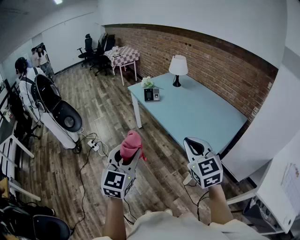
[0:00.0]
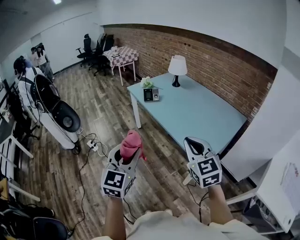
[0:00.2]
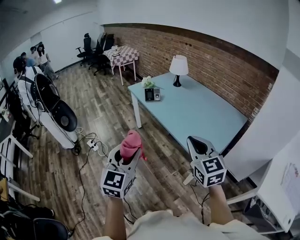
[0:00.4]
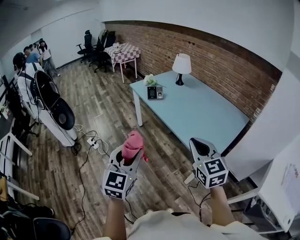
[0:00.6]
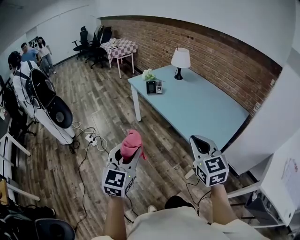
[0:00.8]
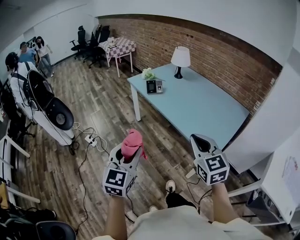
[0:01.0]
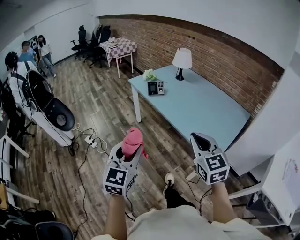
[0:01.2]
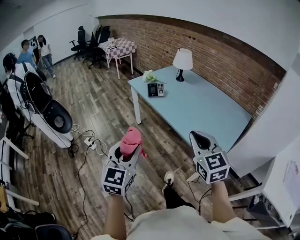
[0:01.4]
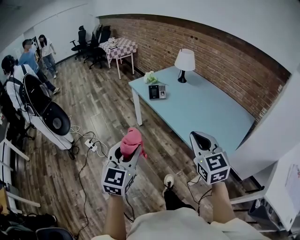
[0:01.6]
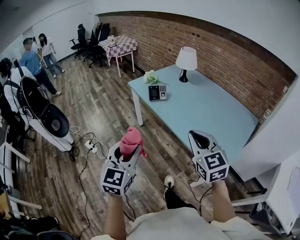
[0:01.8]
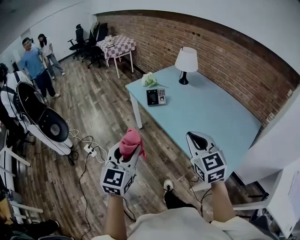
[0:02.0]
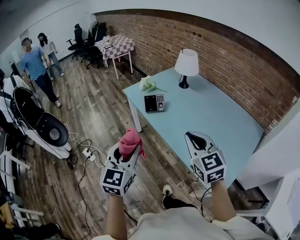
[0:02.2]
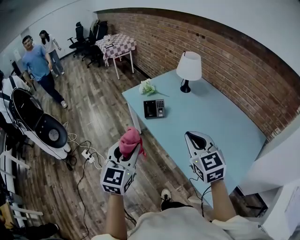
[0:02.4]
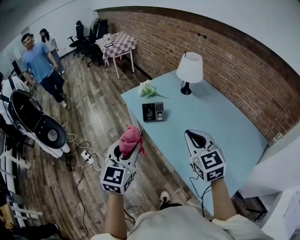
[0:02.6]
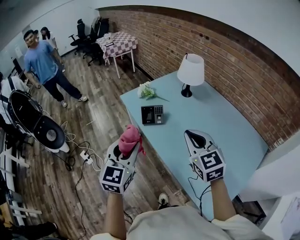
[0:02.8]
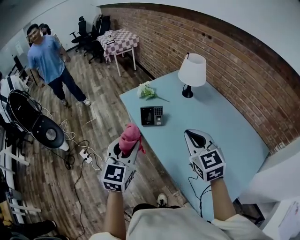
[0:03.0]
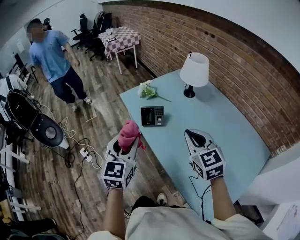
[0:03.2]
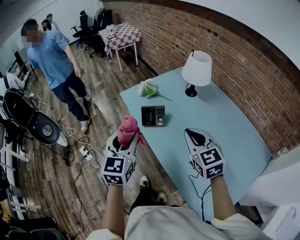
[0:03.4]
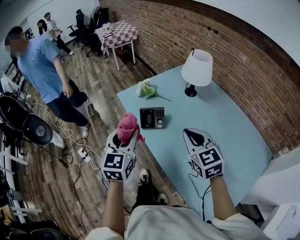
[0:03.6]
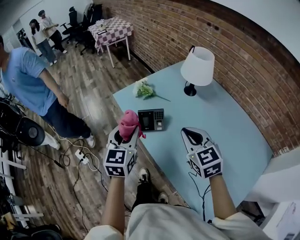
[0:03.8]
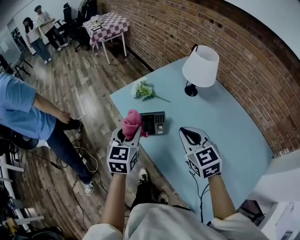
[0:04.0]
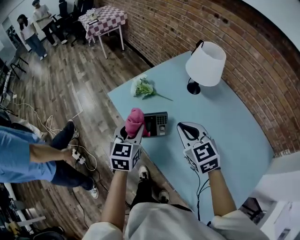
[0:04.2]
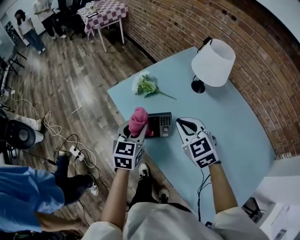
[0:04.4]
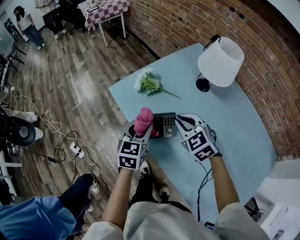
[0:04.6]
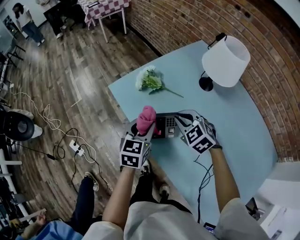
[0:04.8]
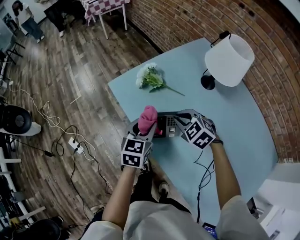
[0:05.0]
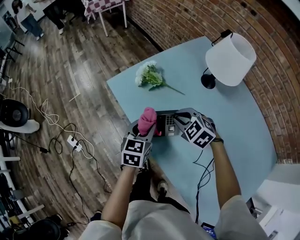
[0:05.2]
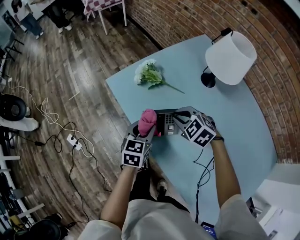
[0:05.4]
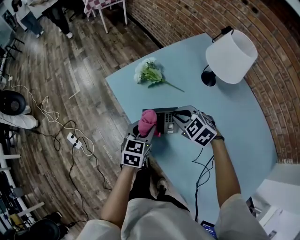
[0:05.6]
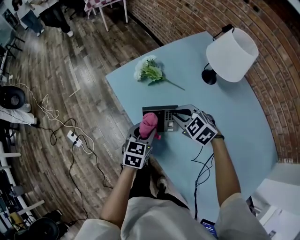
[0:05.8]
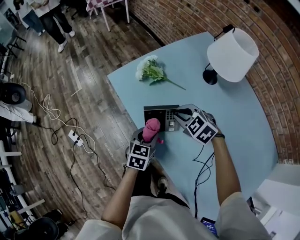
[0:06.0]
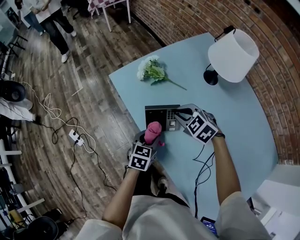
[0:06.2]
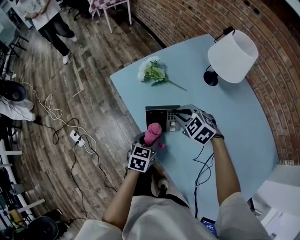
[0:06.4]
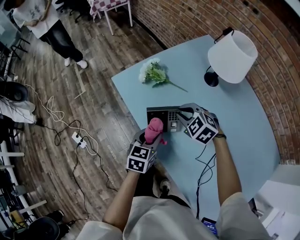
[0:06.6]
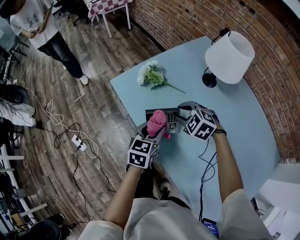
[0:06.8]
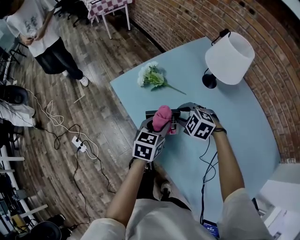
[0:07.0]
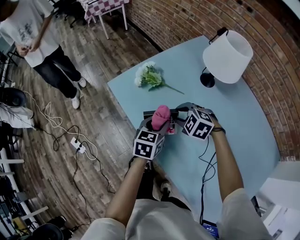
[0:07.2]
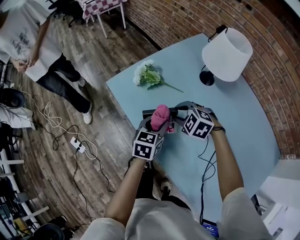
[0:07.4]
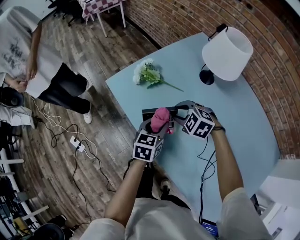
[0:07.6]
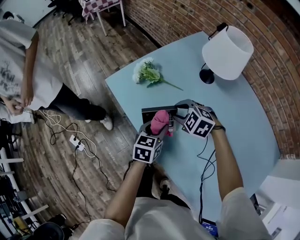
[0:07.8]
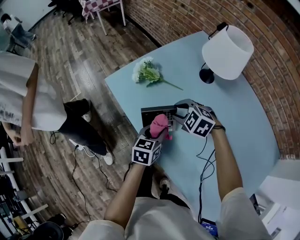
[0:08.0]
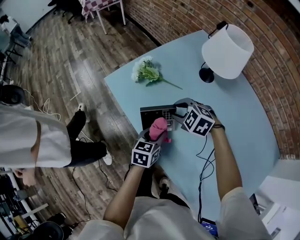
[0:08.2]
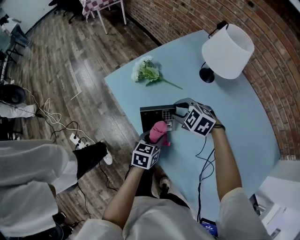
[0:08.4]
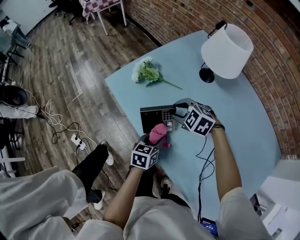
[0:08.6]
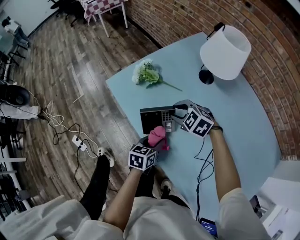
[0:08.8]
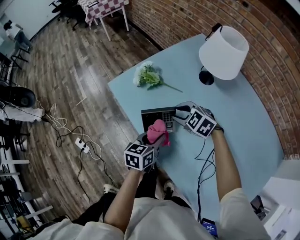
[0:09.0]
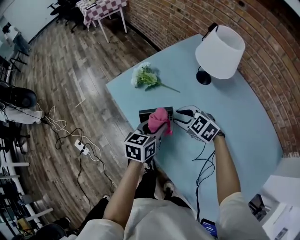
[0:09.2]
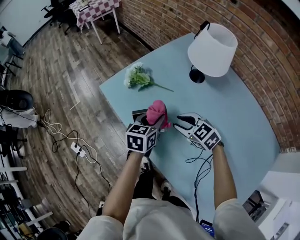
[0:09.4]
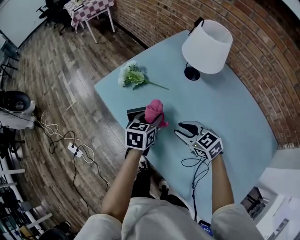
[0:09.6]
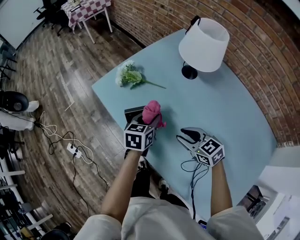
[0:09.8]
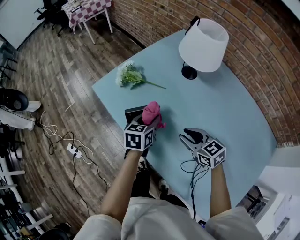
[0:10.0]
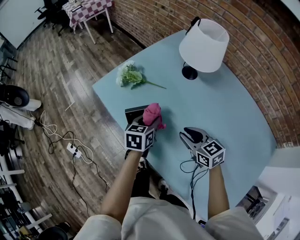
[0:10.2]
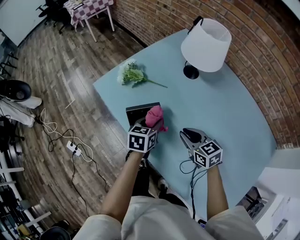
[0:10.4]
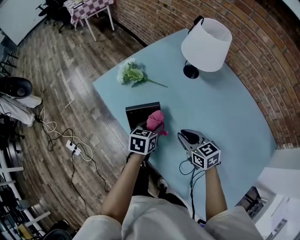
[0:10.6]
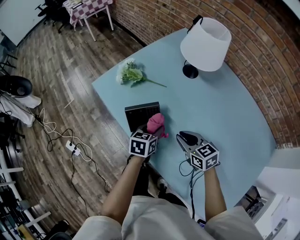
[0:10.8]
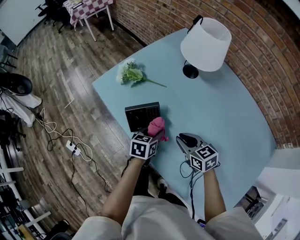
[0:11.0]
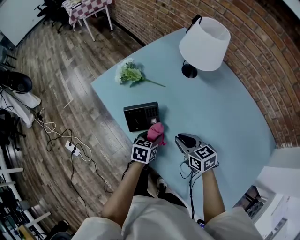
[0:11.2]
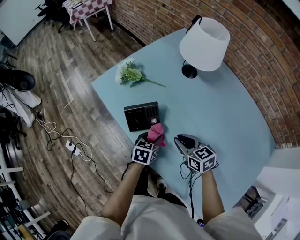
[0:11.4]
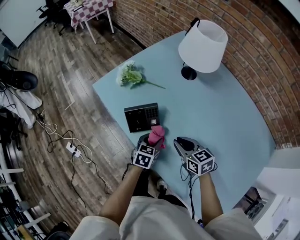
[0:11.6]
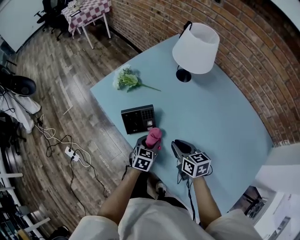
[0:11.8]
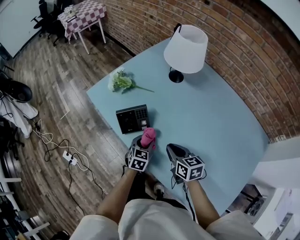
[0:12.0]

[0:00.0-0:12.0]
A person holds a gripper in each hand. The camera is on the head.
0.0 to 1.6 s: The grippers both shift forward and to the left by some 15 cm.
1.6 to 3.0 s: Both grippers travel together forward, about 35 cm.
3.0 to 4.4 s: The grippers both shift forward and downward by some 30 cm.
4.4 to 6.0 s: Both grippers travel together downward, some 15 cm. The right gripper turns by roughly 30 degrees.
6.0 to 7.6 s: The left gripper ends up some 10 cm from where it was. The right gripper opens its fingers.
9.0 to 10.4 s: The right gripper is displaced backward and to the right by roughly 15 cm, and rotates approximately 40 degrees. Meanwhile the left gripper heads to the right, covering some 5 cm.
10.4 to 12.0 s: The left gripper goes some 10 cm backward and downward, and rotates about 20 degrees. Meanwhile the right gripper travels backward by approximately 5 cm.

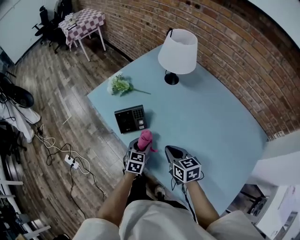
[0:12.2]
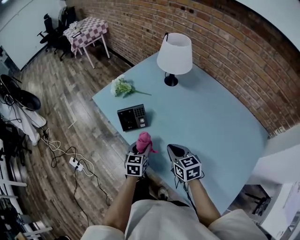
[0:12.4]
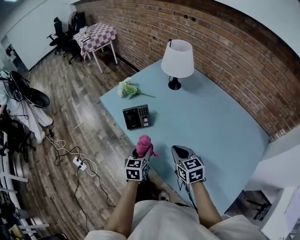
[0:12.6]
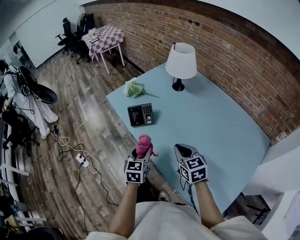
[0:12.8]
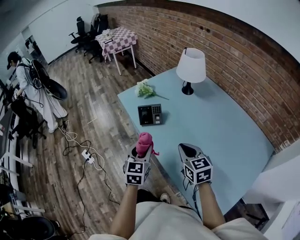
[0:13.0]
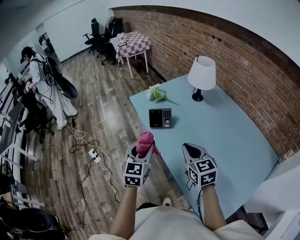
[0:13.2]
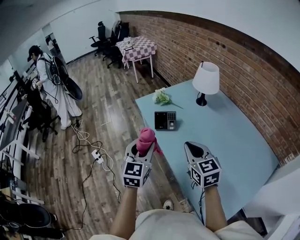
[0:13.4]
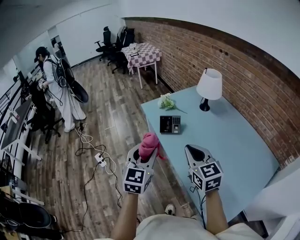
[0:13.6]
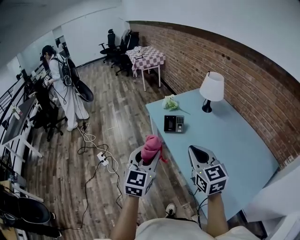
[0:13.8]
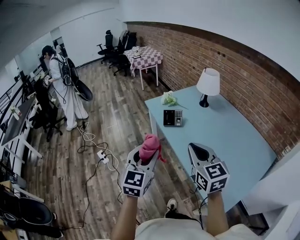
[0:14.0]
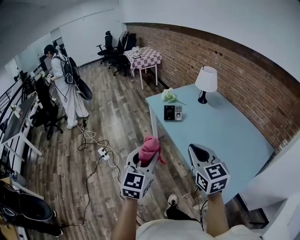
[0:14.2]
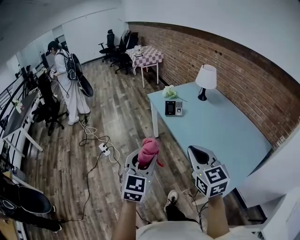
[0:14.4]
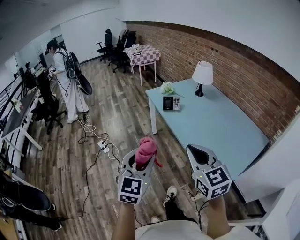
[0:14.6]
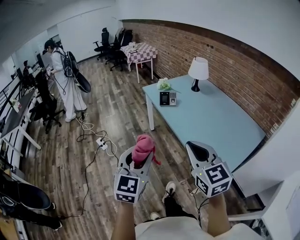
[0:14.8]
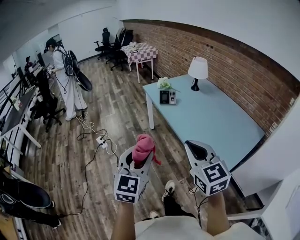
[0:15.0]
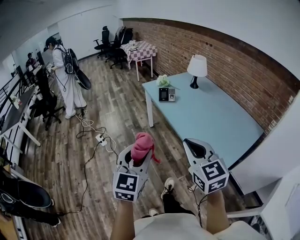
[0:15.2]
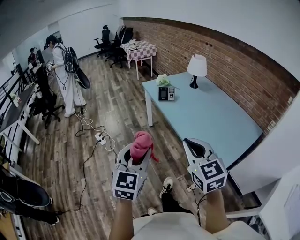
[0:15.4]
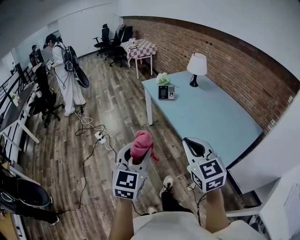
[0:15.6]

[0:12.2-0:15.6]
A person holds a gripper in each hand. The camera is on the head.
12.2 to 13.8 s: Both grippers move upward and backward, approximately 40 cm. The right gripper turns by roughly 30 degrees; the left gripper turns by roughly 40 degrees.
13.8 to 15.6 s: Both grippers travel together backward, roughly 35 cm.

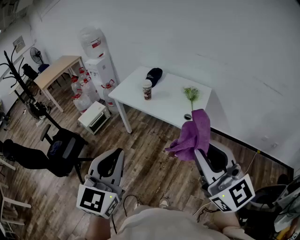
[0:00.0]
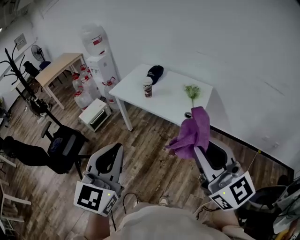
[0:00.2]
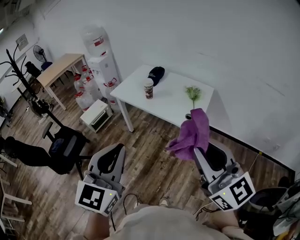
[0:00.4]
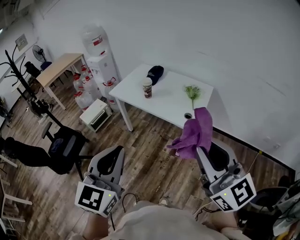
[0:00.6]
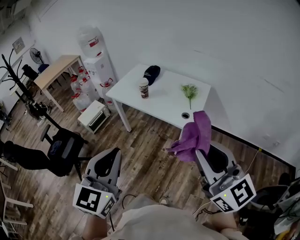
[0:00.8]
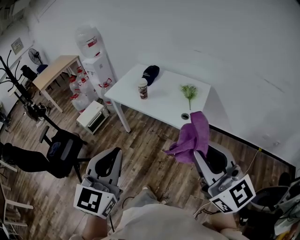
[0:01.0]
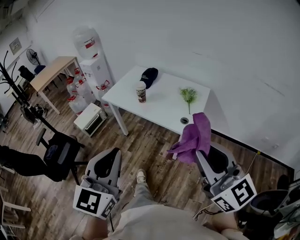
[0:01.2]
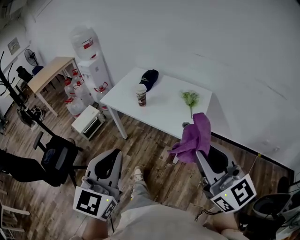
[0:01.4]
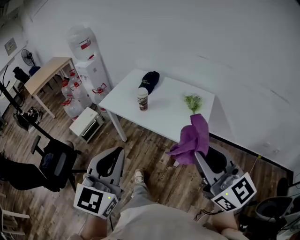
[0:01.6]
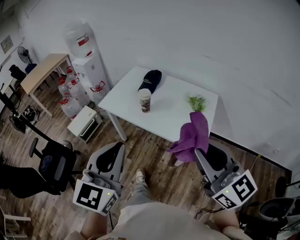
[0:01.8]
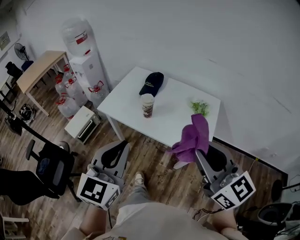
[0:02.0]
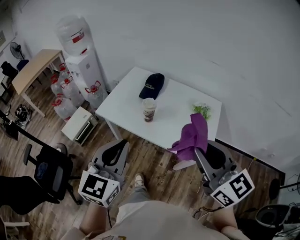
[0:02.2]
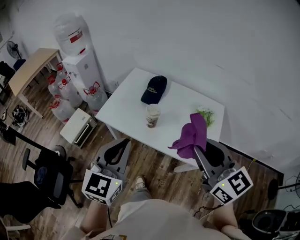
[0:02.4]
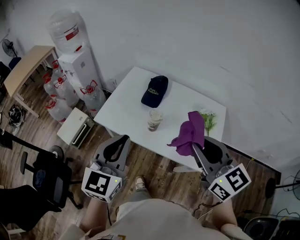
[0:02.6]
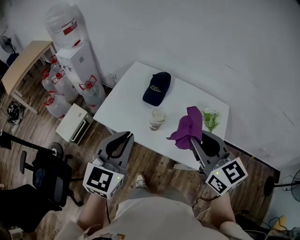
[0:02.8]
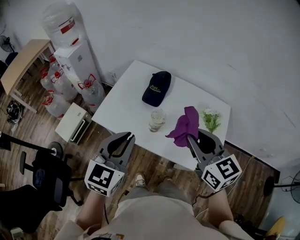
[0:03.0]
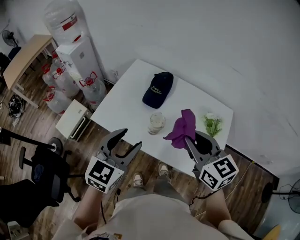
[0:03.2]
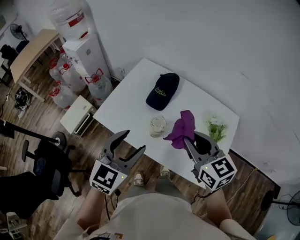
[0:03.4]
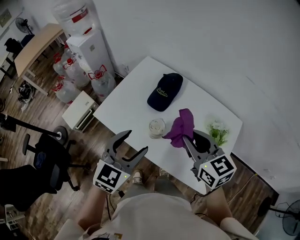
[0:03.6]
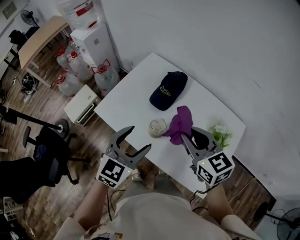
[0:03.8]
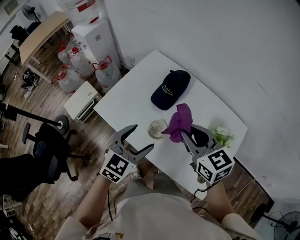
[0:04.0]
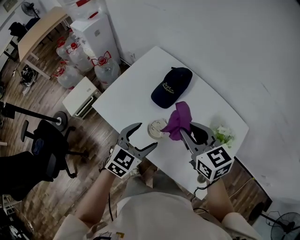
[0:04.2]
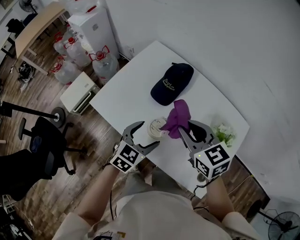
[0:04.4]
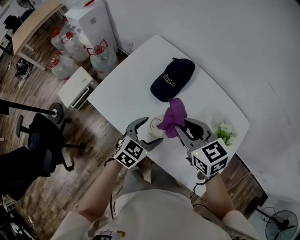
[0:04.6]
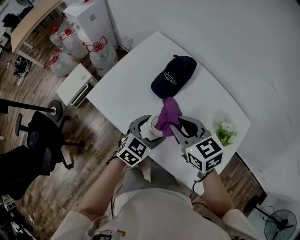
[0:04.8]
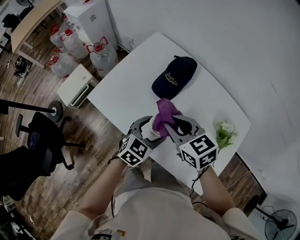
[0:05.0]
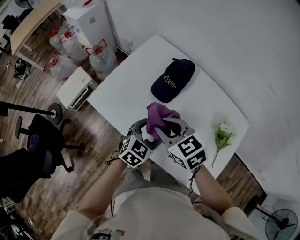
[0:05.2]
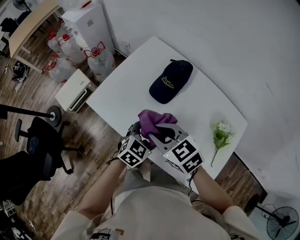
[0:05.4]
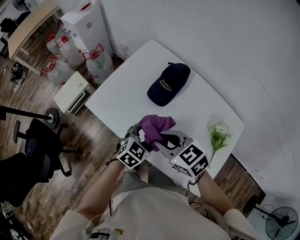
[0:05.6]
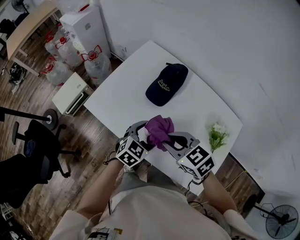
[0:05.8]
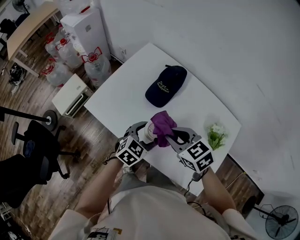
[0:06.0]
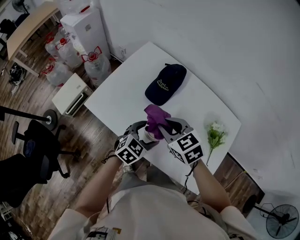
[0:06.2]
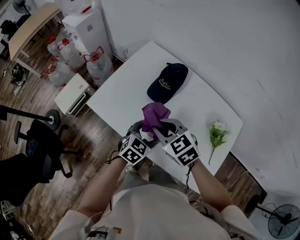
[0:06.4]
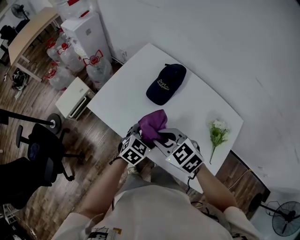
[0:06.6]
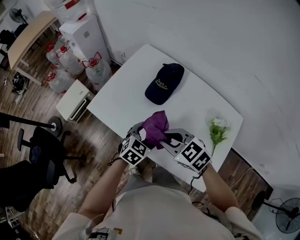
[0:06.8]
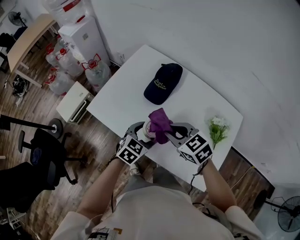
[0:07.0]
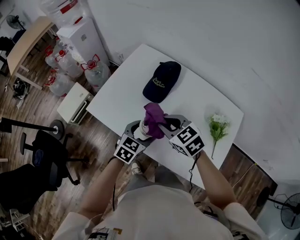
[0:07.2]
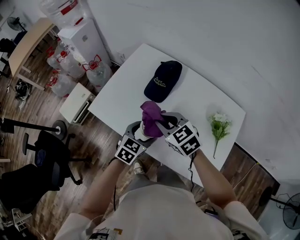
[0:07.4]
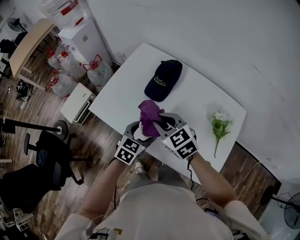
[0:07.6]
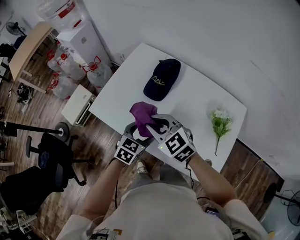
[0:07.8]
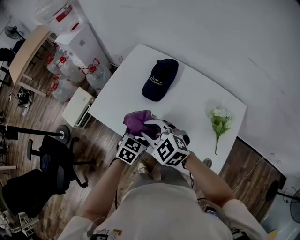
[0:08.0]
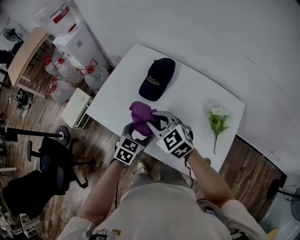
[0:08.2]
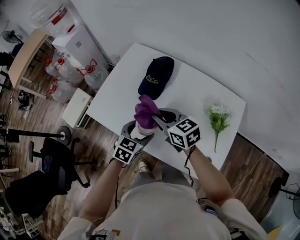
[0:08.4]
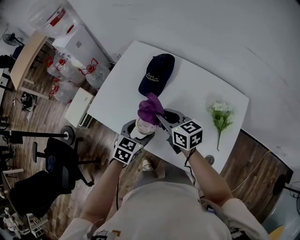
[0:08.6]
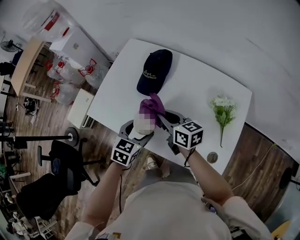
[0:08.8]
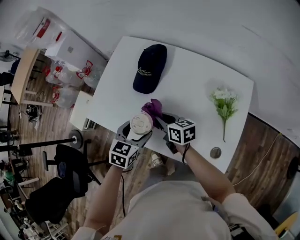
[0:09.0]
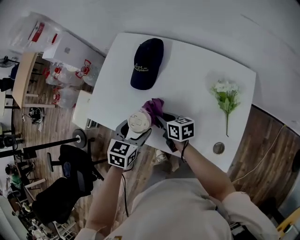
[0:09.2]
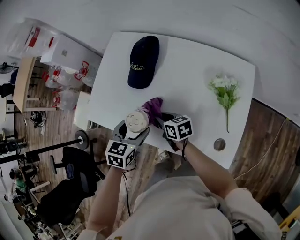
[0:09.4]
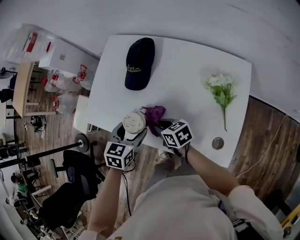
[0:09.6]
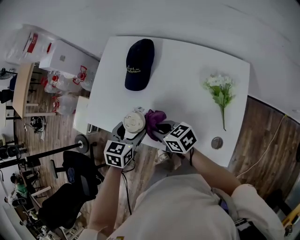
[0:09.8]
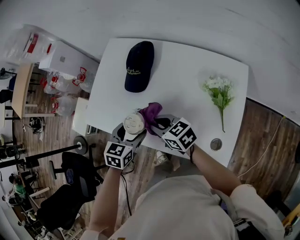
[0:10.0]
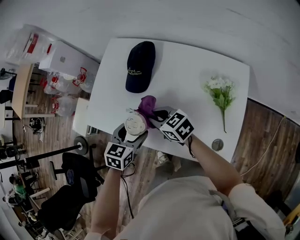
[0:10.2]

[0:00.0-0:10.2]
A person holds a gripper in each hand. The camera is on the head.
0.0 to 1.4 s: Both grippers move forward, approximately 10 cm.
1.4 to 3.0 s: The pair of grippers is taken forward, some 50 cm. The right gripper swivels about 20 degrees.
3.0 to 4.4 s: The right gripper shifts roughly 20 cm forward and downward, and changes its angle by approximately 20 degrees. Meanwhile the left gripper heads downward, to the right and forward, covering approximately 25 cm, swivels roughly 20 degrees, and opens its fingers.
4.4 to 5.8 s: The right gripper shifts some 5 cm downward, and turns by approximately 20 degrees.
5.8 to 7.2 s: The right gripper goes forward and backward, roughly 5 cm each way, reversing 2 times.
7.2 to 8.8 s: The right gripper ends up roughly 5 cm from where it was, and swivels approximately 40 degrees.
8.8 to 10.2 s: The right gripper moves roughly 10 cm downward and comes back, and rotates roughly 20 degrees.
